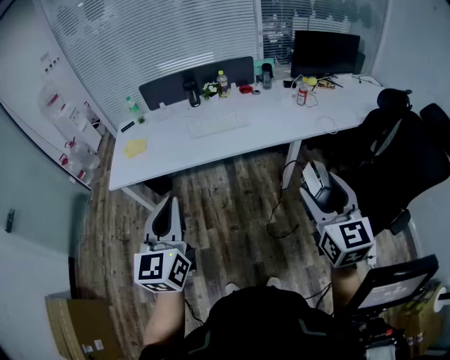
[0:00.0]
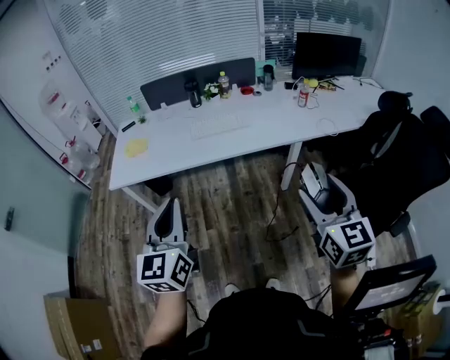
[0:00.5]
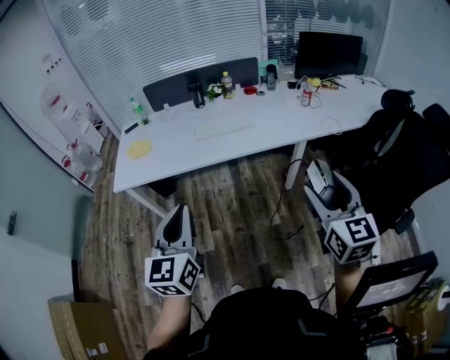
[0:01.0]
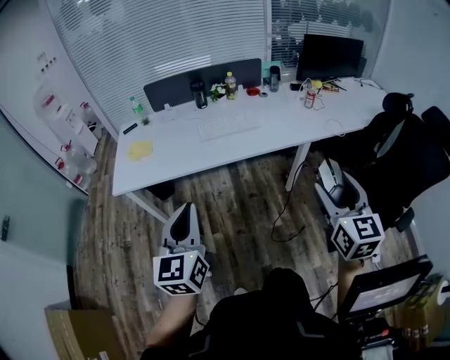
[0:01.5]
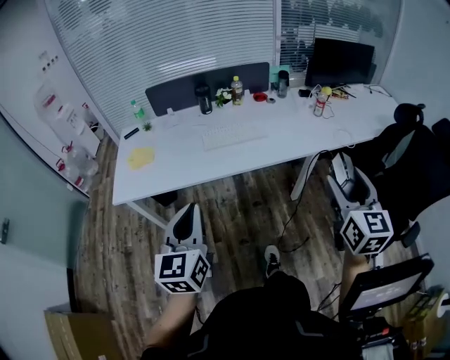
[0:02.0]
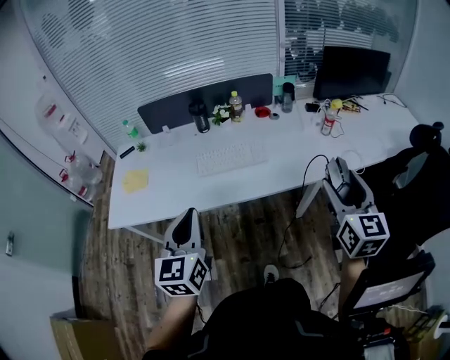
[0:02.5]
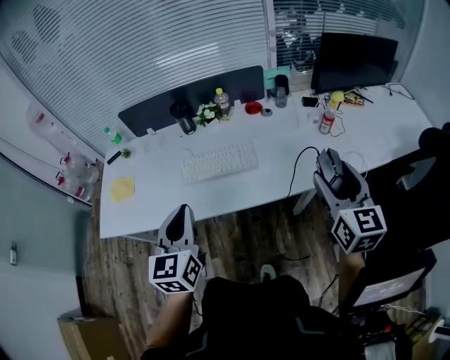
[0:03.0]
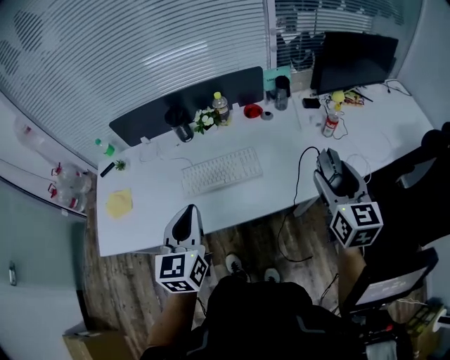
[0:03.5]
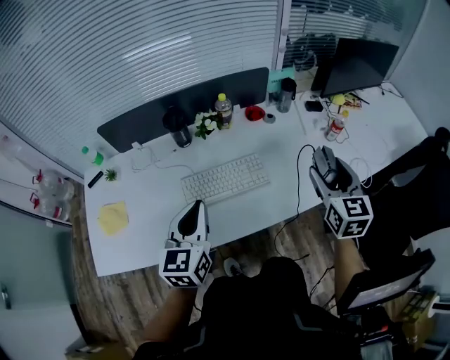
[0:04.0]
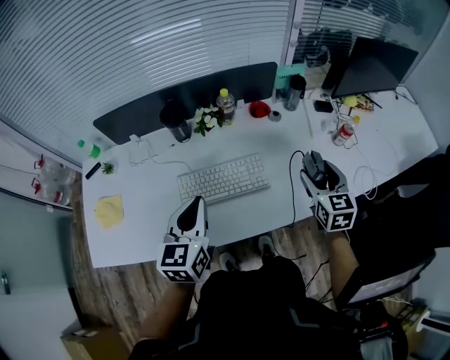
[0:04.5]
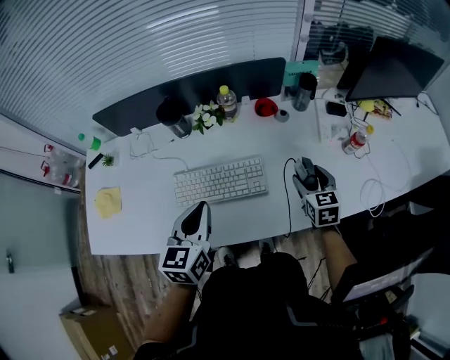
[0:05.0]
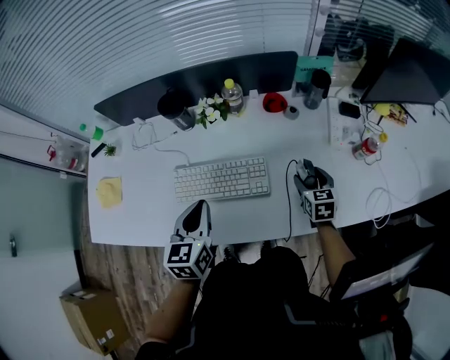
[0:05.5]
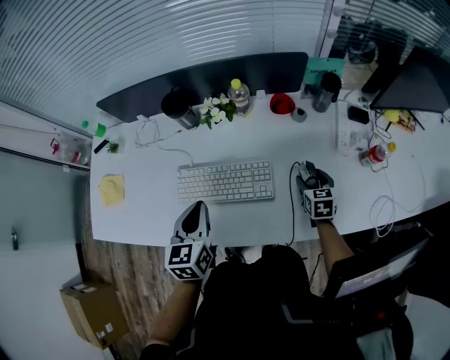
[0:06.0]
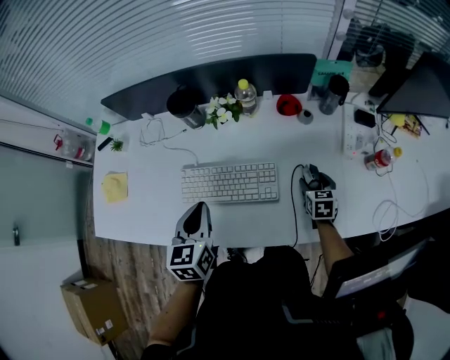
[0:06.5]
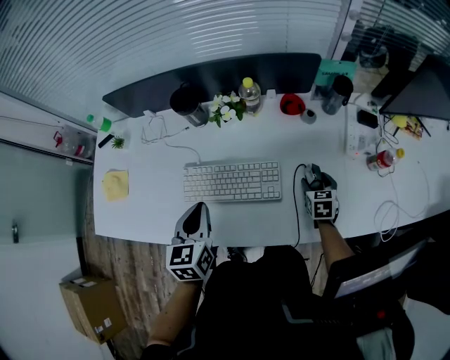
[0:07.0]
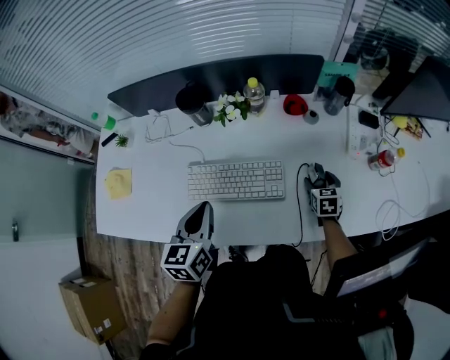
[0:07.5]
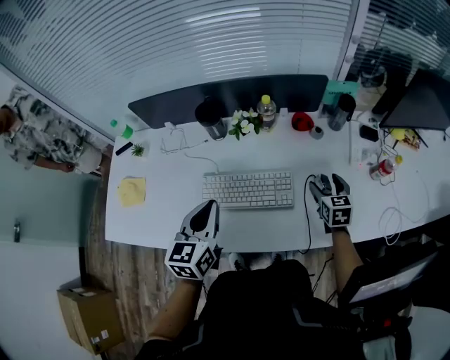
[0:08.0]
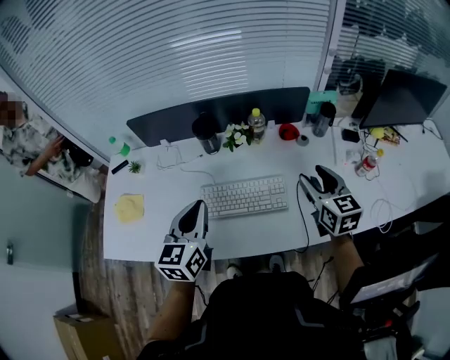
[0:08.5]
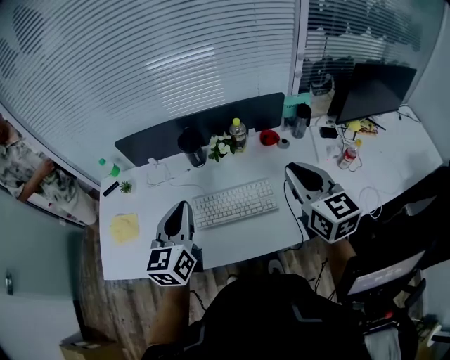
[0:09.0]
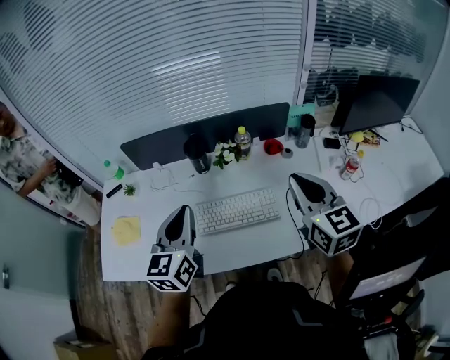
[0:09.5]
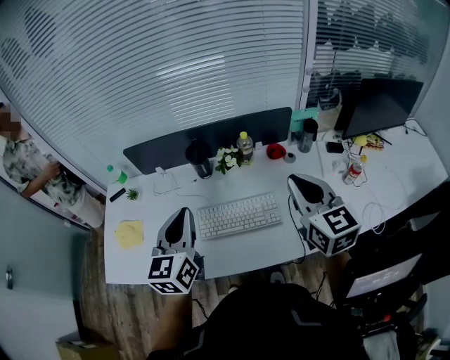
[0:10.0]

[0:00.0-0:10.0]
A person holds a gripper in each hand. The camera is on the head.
0:00.0 to 0:02.0: The left gripper shifts some 15 cm forward, downward and to the left; the right gripper shifts roughly 10 cm forward.
0:02.0 to 0:04.0: The two grippers travel together, forward, roughly 40 cm.
0:04.0 to 0:06.0: The right gripper goes roughly 35 cm downward and forward, and turns by about 30 degrees; the left gripper is displaced downward and forward by some 15 cm, and swivels roughly 20 degrees.
0:06.0 to 0:08.0: The two grippers go approximately 5 cm upward.
0:08.0 to 0:10.0: The right gripper travels upward by approximately 30 cm, changes its angle by about 30 degrees, and closes up. The left gripper heads upward, covering approximately 15 cm.

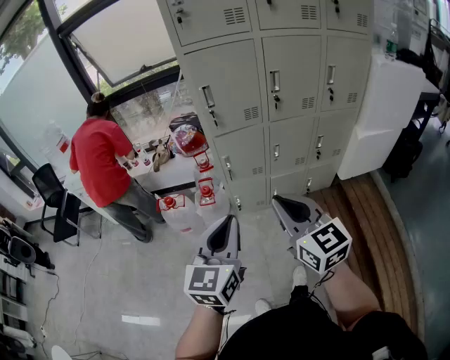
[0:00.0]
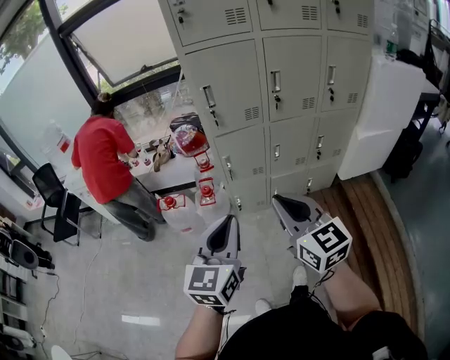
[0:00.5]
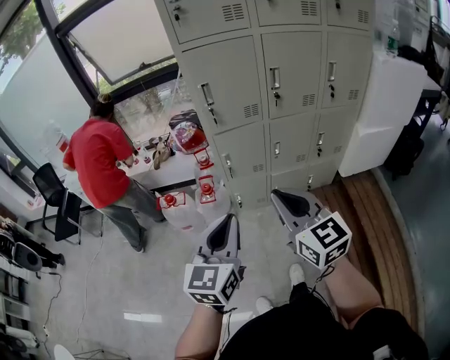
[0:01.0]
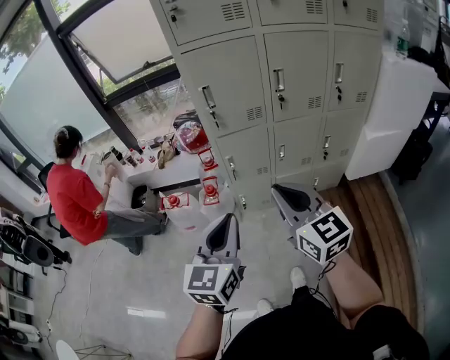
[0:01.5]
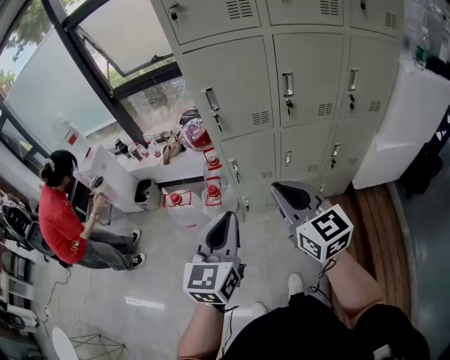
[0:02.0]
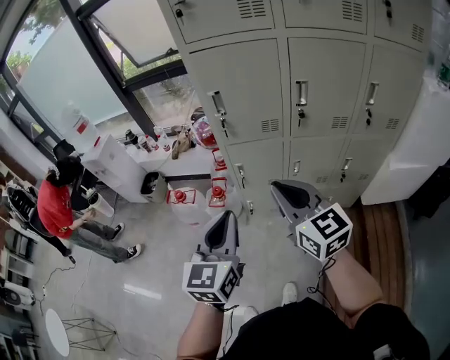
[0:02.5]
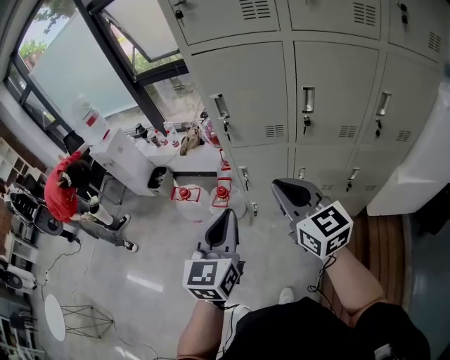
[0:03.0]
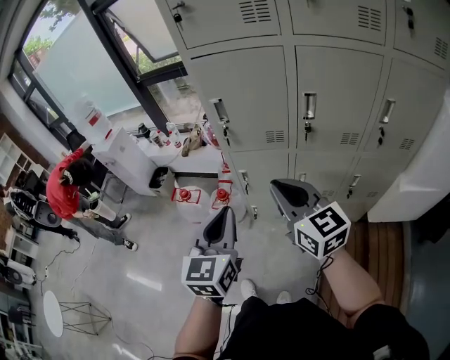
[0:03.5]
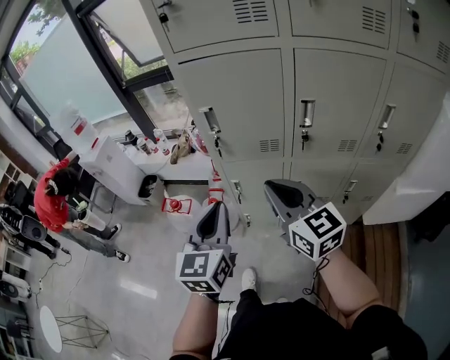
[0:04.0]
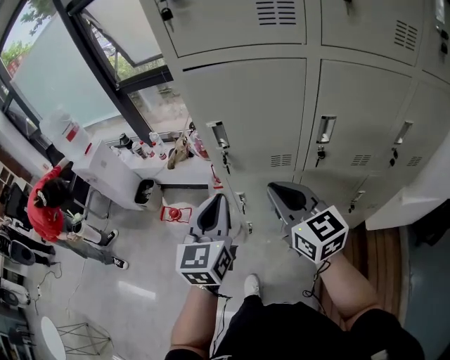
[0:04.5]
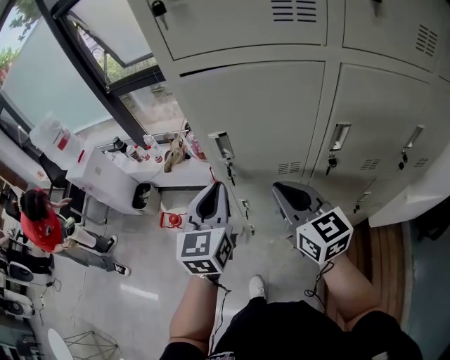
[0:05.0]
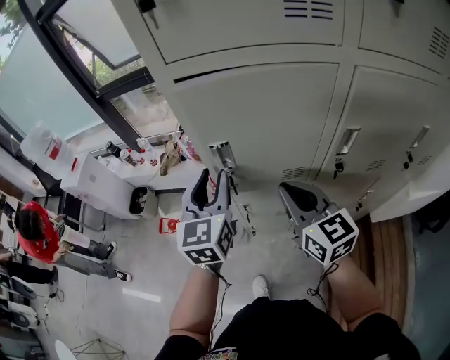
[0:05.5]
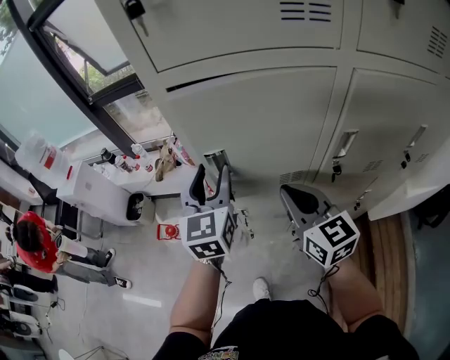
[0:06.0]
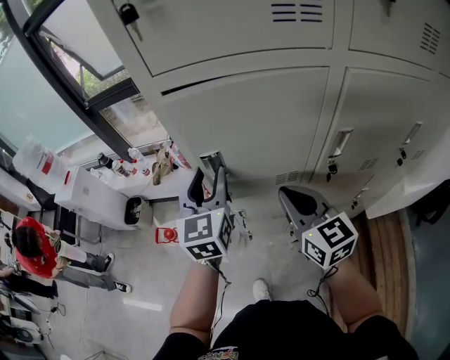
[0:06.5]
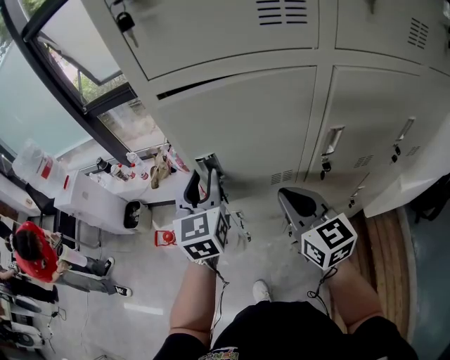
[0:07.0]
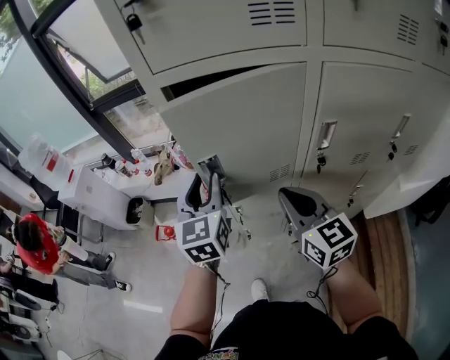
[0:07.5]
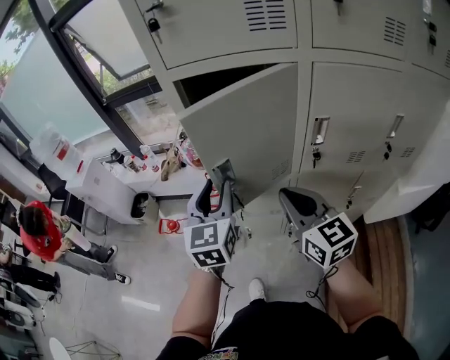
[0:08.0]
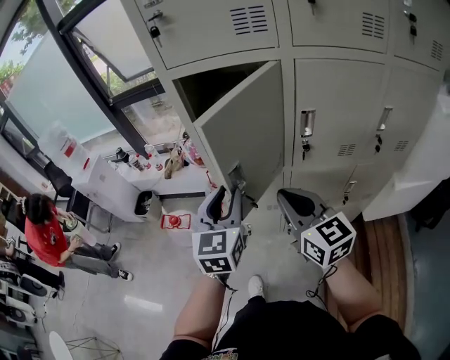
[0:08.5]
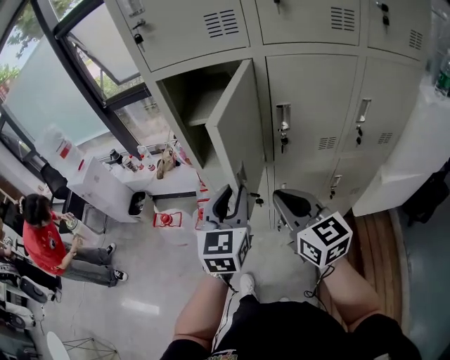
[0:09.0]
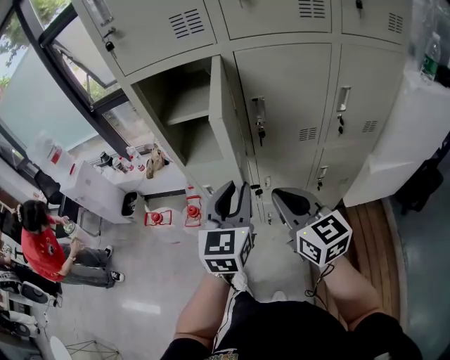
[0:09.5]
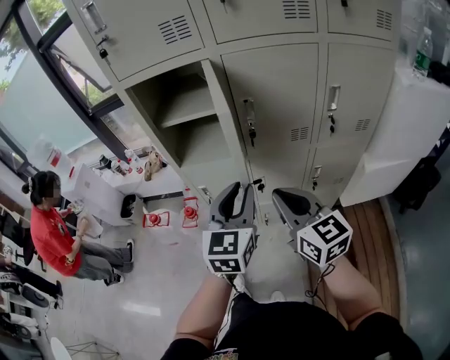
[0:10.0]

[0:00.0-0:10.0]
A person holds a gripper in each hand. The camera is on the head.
0:00.0 to 0:02.0: Both grippers move forward, some 10 cm.
0:02.0 to 0:04.0: Both grippers move forward and to the right, some 15 cm.
0:04.0 to 0:06.0: The right gripper shifts roughly 15 cm forward, while the left gripper shifts roughly 30 cm forward, and opens its fingers.
0:06.0 to 0:08.0: The grippers both shift backward by roughly 10 cm.
0:08.0 to 0:10.0: The right gripper is displaced backward and to the right by approximately 20 cm, while the left gripper is displaced to the right and backward by roughly 25 cm.

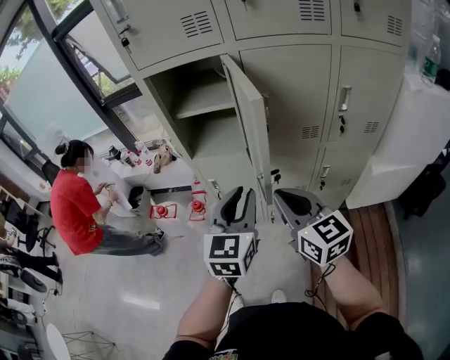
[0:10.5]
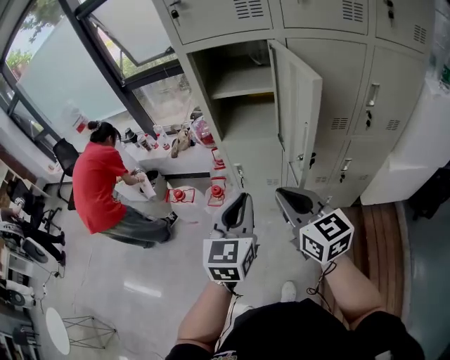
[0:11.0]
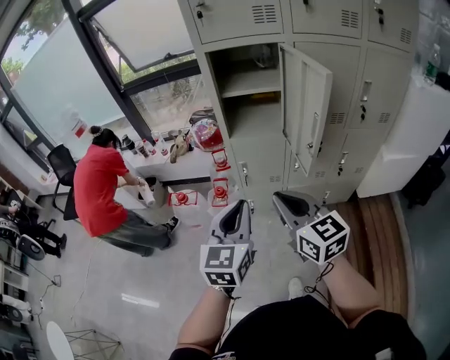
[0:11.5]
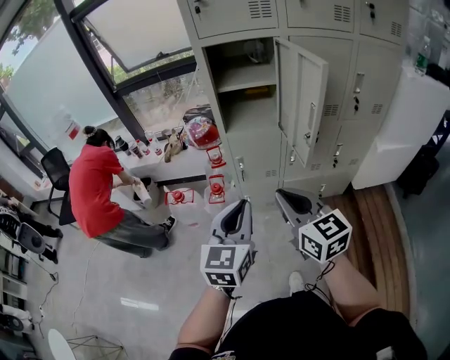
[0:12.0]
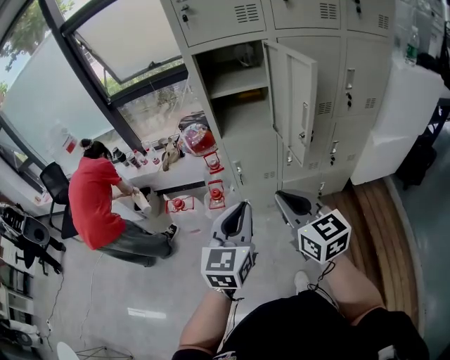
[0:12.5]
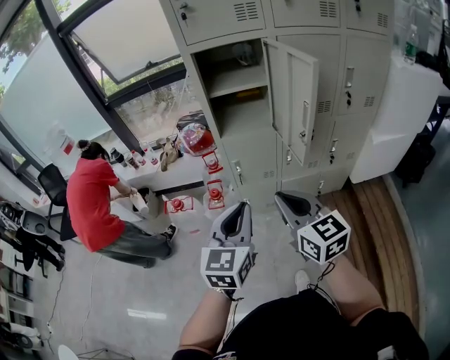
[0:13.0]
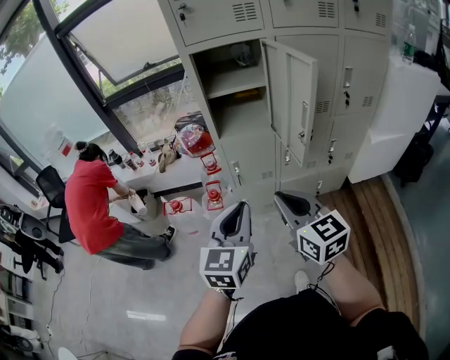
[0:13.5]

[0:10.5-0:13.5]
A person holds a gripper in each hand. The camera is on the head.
0:10.5 to 0:12.0: Both grippers move to the left and backward, about 25 cm.
0:12.0 to 0:13.5: Neither gripper changes place.

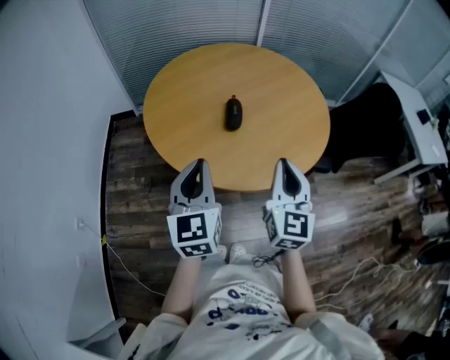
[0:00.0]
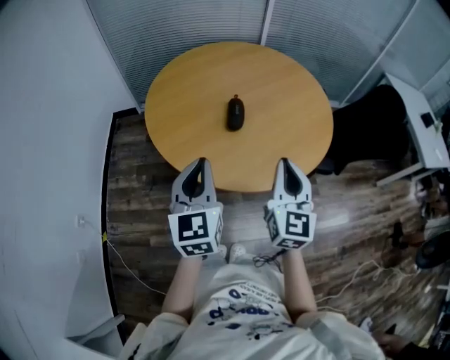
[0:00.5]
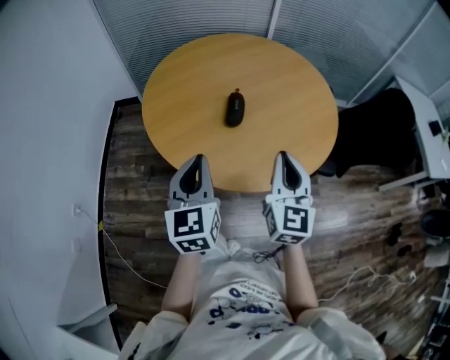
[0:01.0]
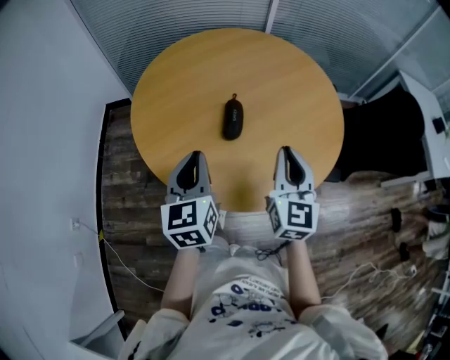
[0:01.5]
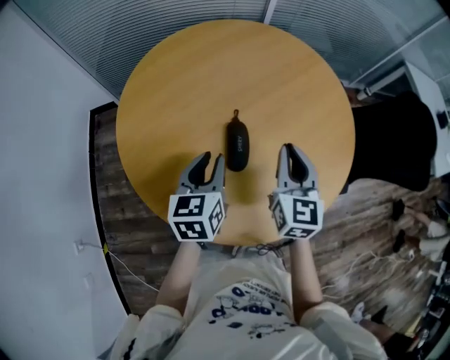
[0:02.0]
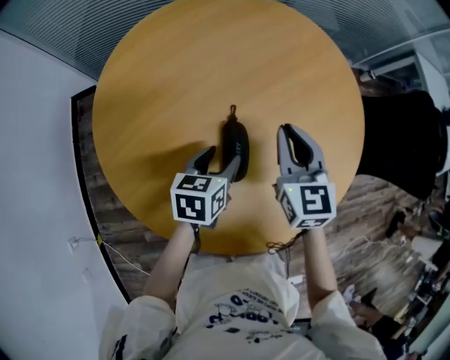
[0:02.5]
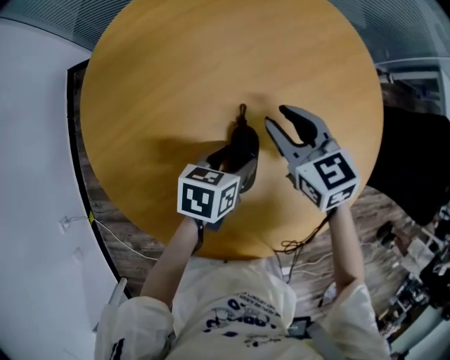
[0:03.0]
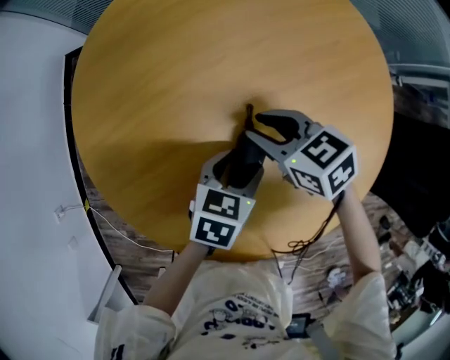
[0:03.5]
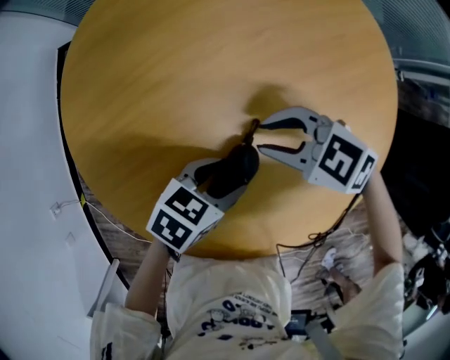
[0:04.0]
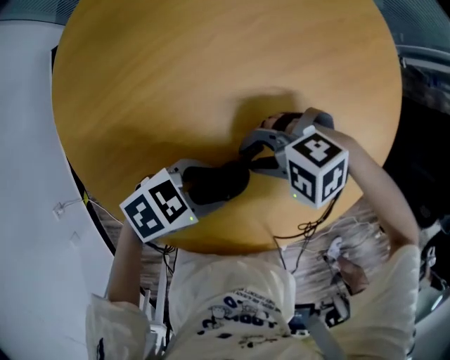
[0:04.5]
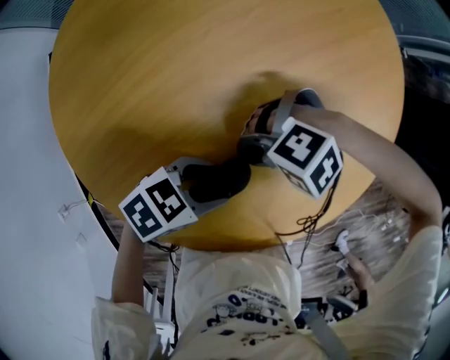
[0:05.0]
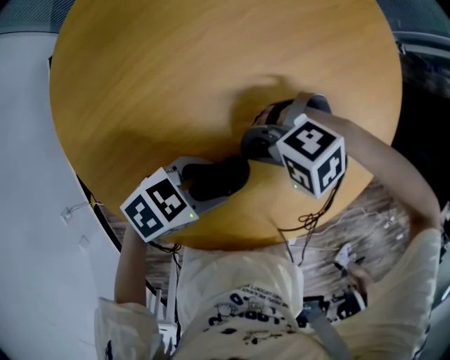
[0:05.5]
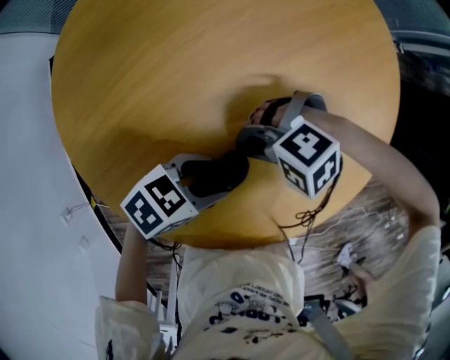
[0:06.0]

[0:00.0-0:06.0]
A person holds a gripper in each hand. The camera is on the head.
0:00.0 to 0:02.0: The left gripper travels forward and downward by some 30 cm, and turns by approximately 30 degrees, while the right gripper travels forward by roughly 25 cm.
0:02.0 to 0:04.0: Both grippers move downward, some 15 cm. The left gripper changes its angle by some 50 degrees, and opens its fingers. The right gripper angles its fingers downward, by some 30 degrees, and opens its fingers.
0:04.0 to 0:06.0: The left gripper swivels some 20 degrees. Meanwhile the right gripper ends up about 10 cm from where it was, turns by approximately 40 degrees, and closes its fingers.
